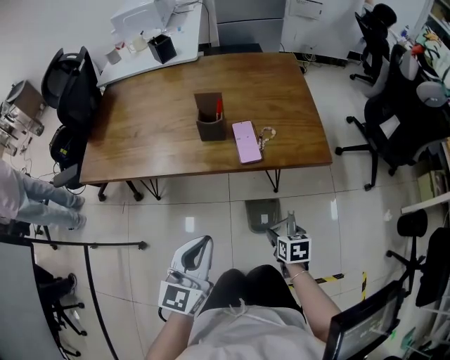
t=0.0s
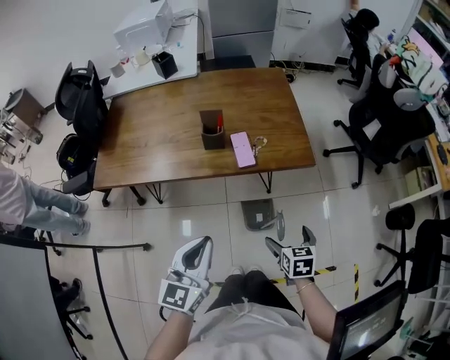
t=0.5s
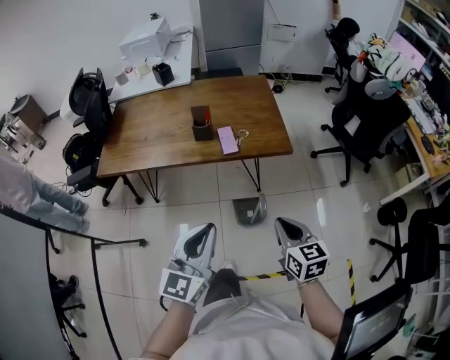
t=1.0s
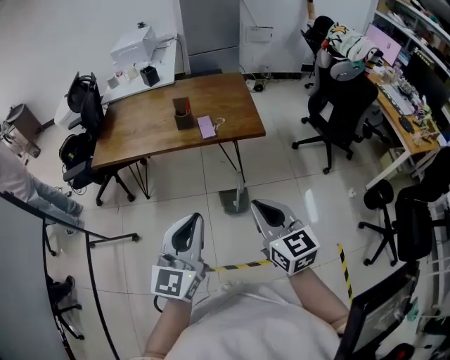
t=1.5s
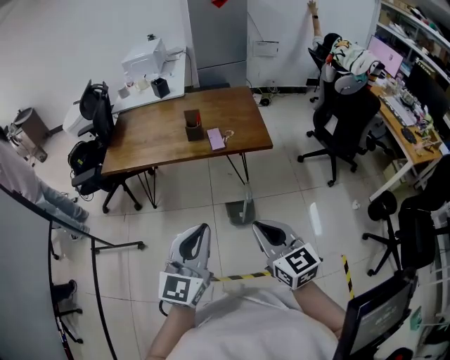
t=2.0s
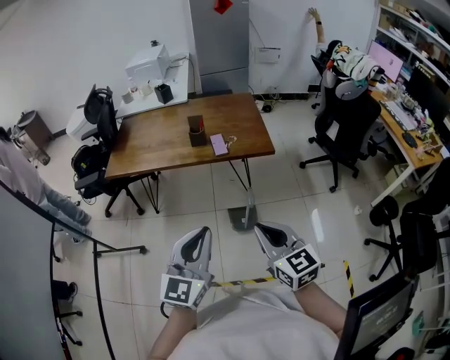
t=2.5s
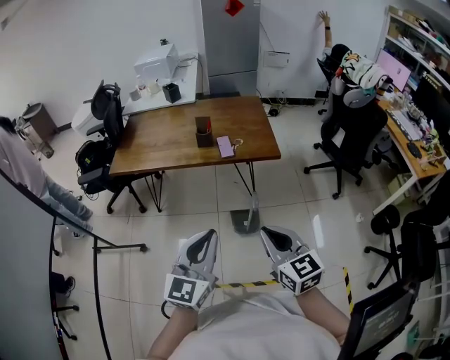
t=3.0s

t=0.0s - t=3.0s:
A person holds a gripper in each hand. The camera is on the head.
t=0.0s - t=1.5s: The right gripper heads upward and backward, covering approximately 50 cm, tips its fingers upward by some 40 degrees, and closes its fingers. Meanwhile the left gripper heads backward and upward, covering about 35 cm.
t=1.5s - t=3.0s: There are only small adjustments of the grippers.

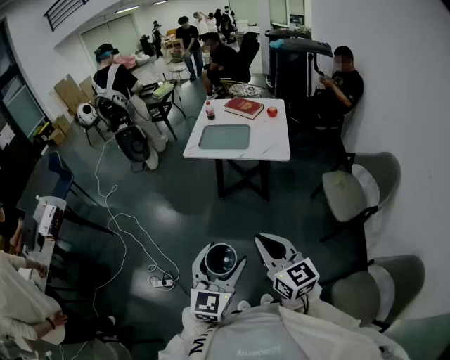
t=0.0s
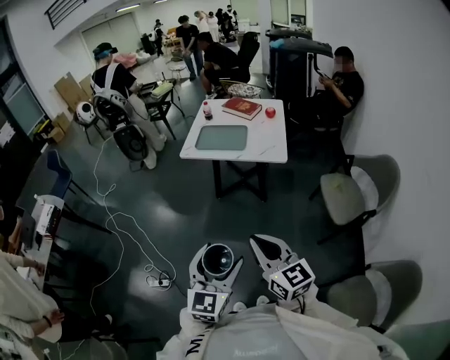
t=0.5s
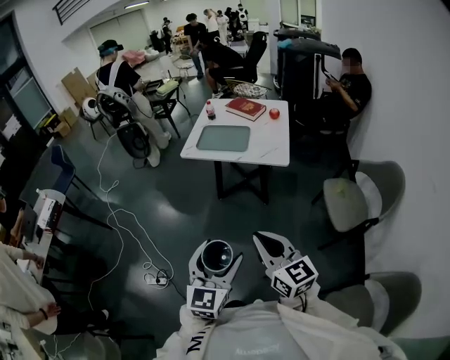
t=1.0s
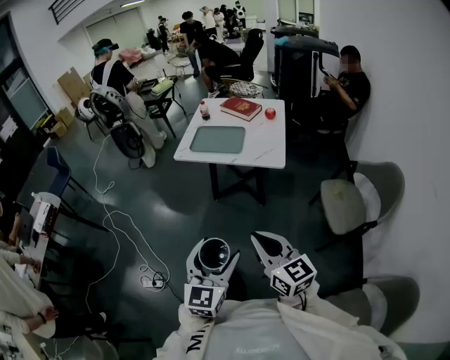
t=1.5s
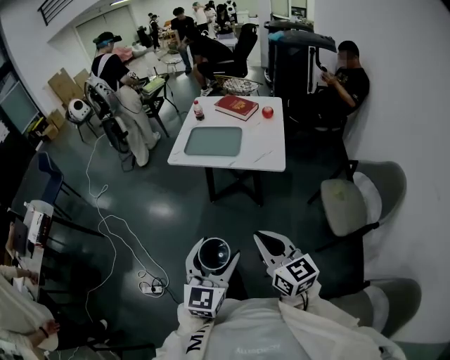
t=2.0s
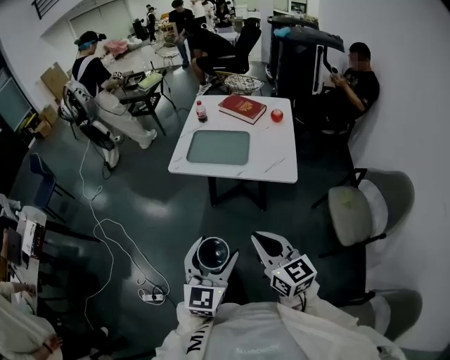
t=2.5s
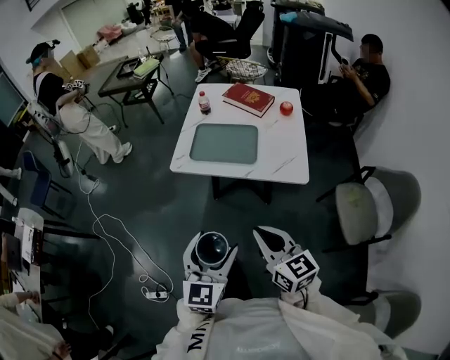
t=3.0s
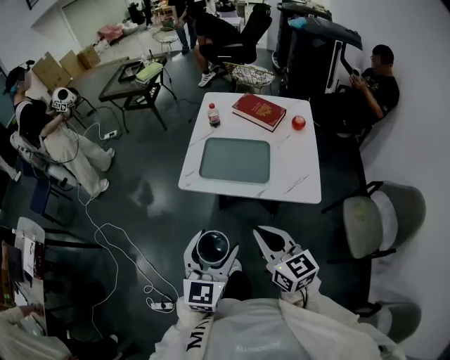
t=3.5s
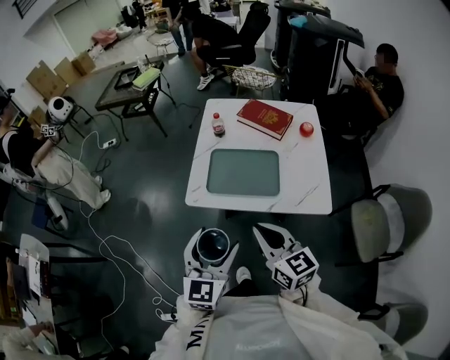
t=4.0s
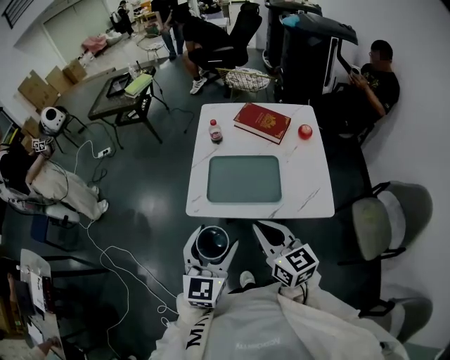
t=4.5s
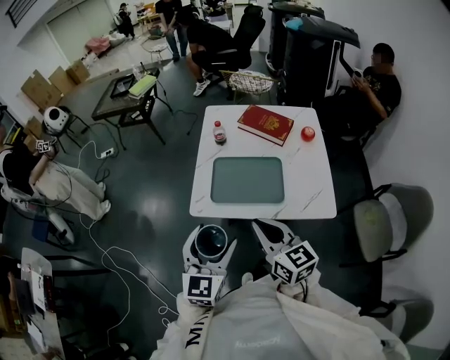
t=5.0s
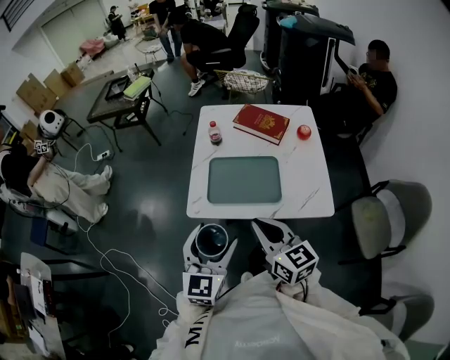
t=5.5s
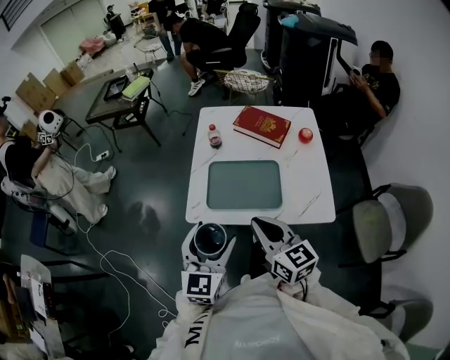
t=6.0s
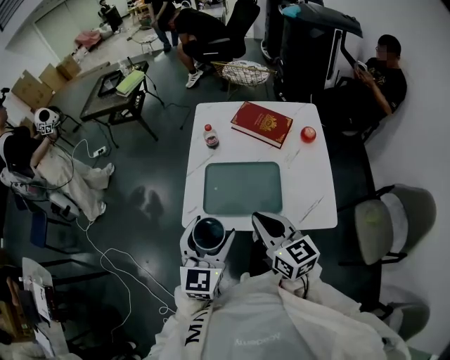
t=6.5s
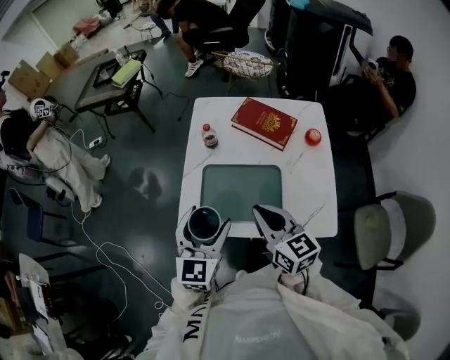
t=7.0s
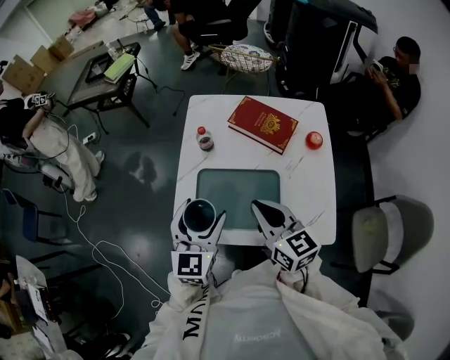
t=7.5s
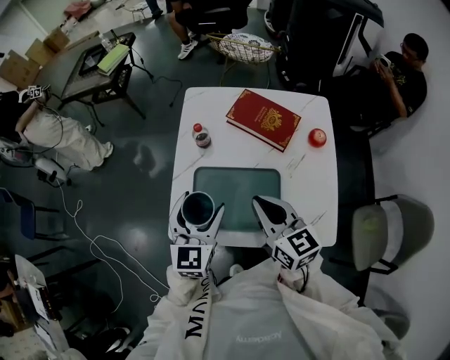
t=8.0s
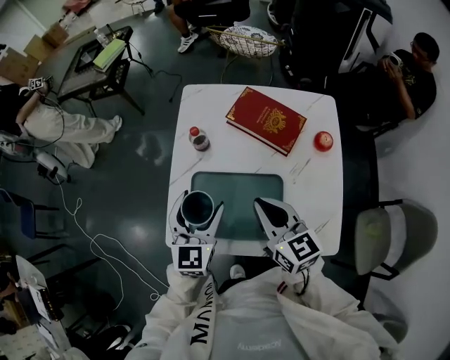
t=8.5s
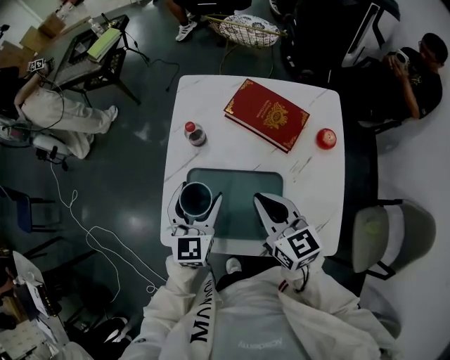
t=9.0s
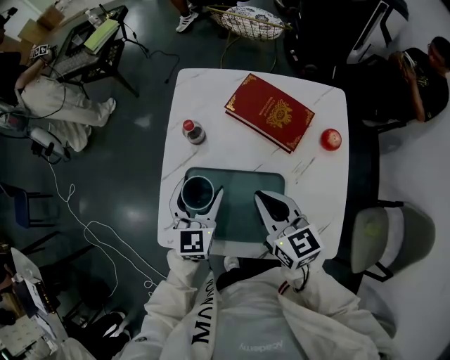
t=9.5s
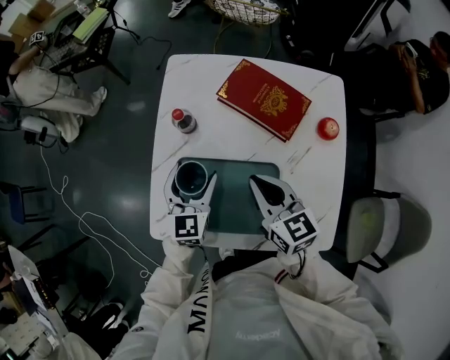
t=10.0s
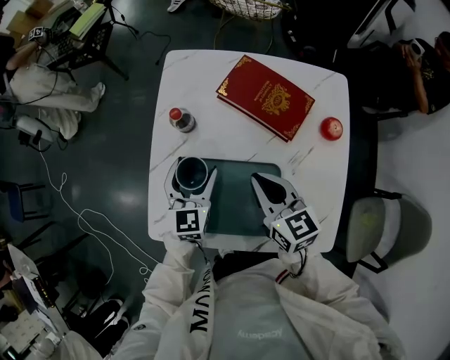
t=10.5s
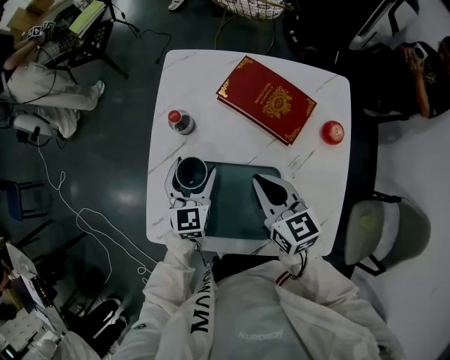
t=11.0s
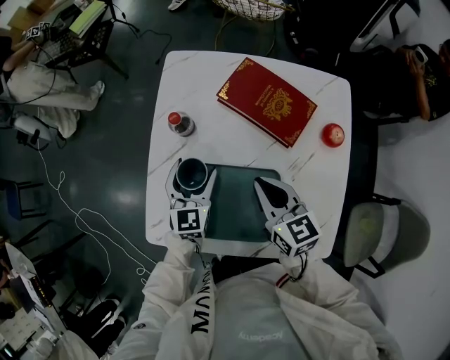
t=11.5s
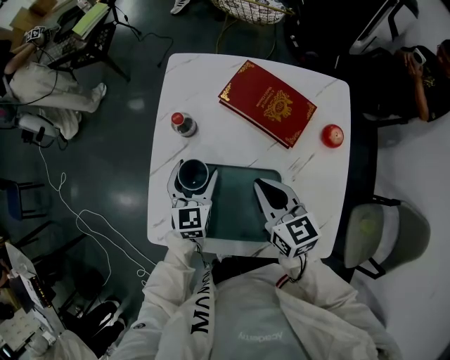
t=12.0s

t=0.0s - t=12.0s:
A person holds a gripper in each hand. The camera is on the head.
t=0.0s - t=2.0s: Both grippers move forward and to the right, some 15 cm.
t=2.0s - t=4.0s: The pair of grippers is taken forward, approximately 40 cm.
t=4.0s - t=6.0s: Both grippers move forward, approximately 10 cm.
t=6.0s - t=8.0s: The two grippers go roughly 20 cm forward.
t=8.0s - t=10.0s: The grippers both shift downward and forward by roughly 15 cm.
t=10.0s - t=12.0s: The left gripper heads downward, covering about 5 cm.

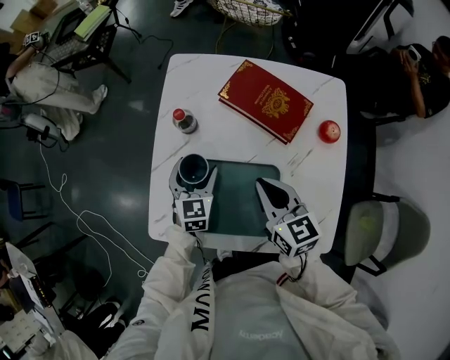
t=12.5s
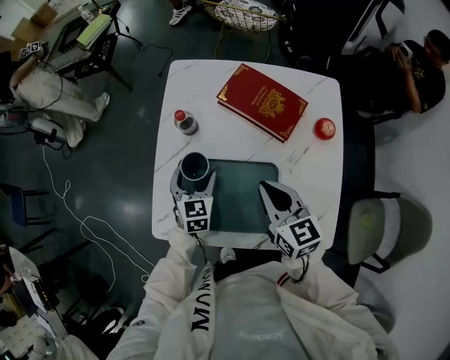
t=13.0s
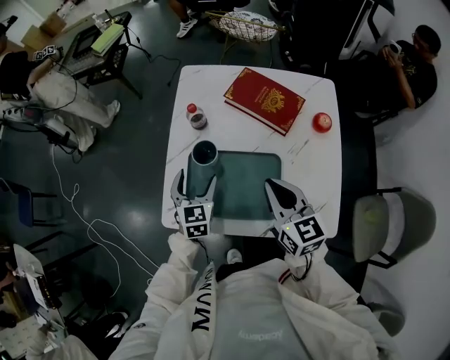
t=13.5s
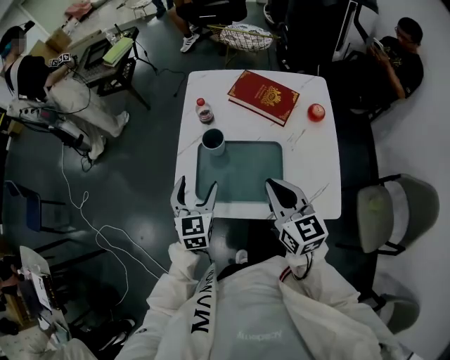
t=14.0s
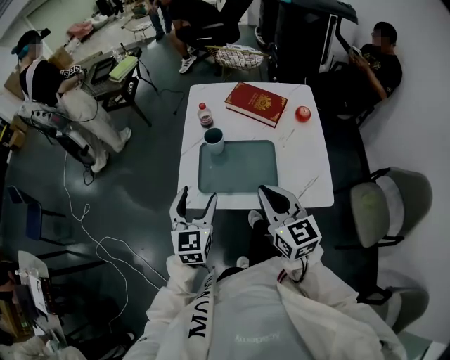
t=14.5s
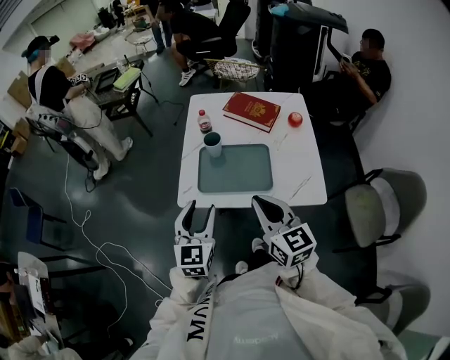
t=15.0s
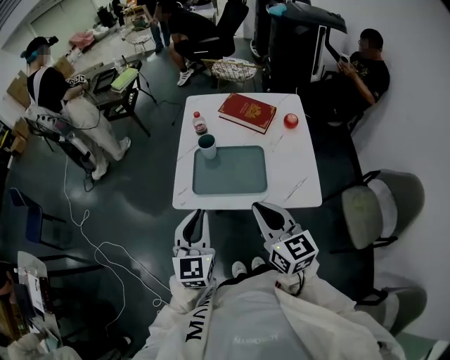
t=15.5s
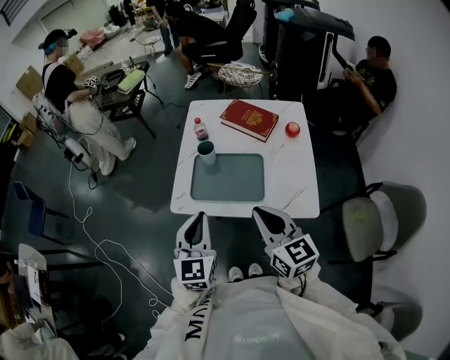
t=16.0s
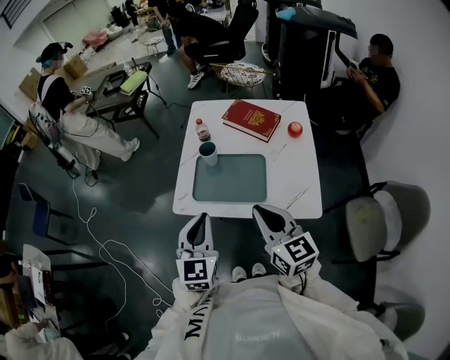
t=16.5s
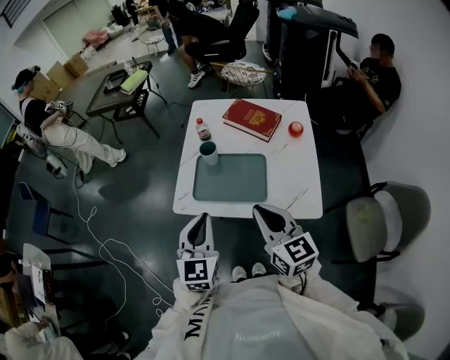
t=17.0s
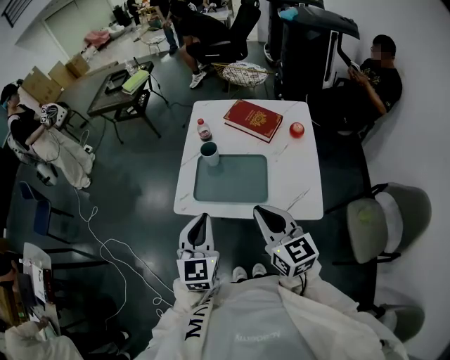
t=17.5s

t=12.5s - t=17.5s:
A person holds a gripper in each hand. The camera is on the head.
t=12.5s - t=15.0s: Both grippers move backward and upward, about 40 cm. The left gripper closes.
t=15.0s - t=17.5s: Both grippers move to the right, about 5 cm. The left gripper closes up.

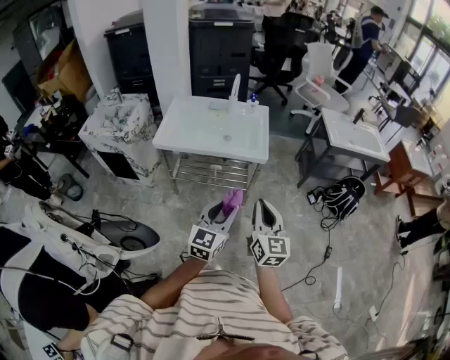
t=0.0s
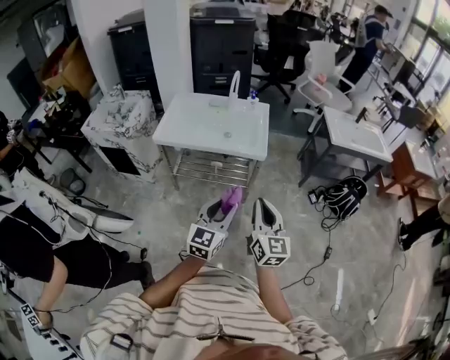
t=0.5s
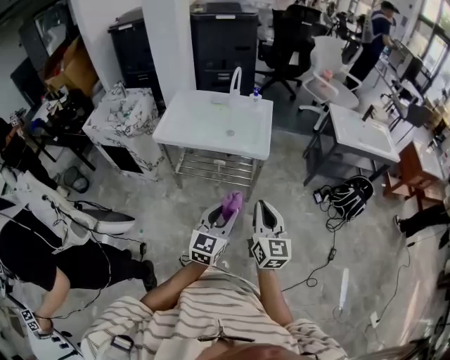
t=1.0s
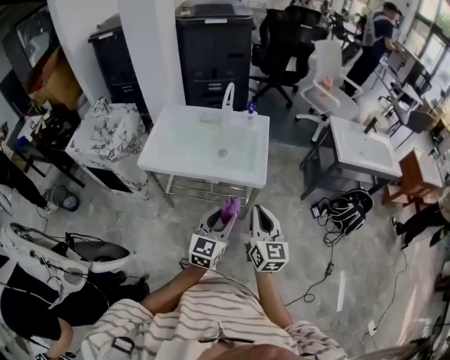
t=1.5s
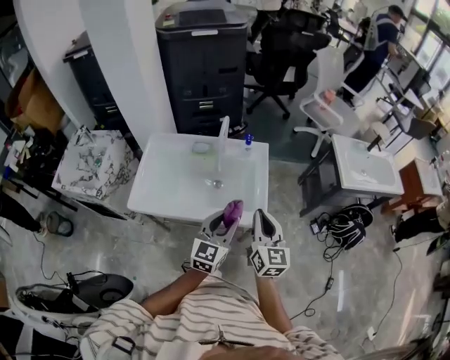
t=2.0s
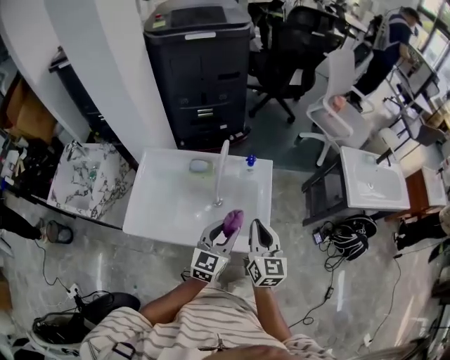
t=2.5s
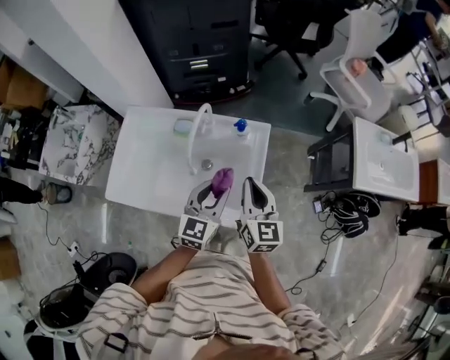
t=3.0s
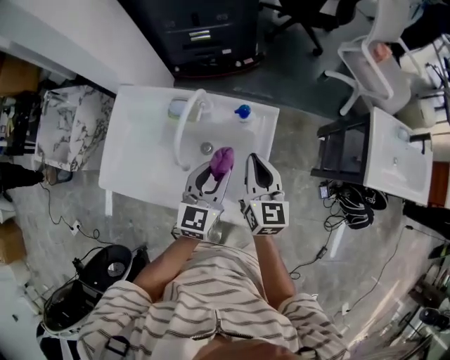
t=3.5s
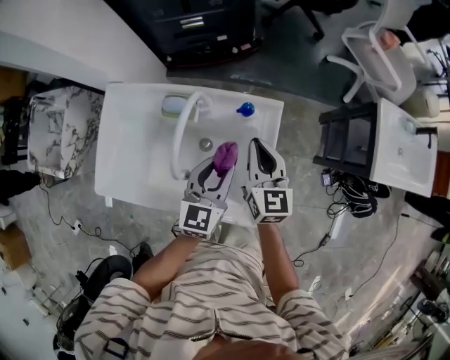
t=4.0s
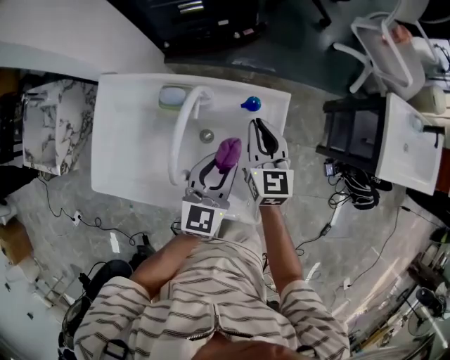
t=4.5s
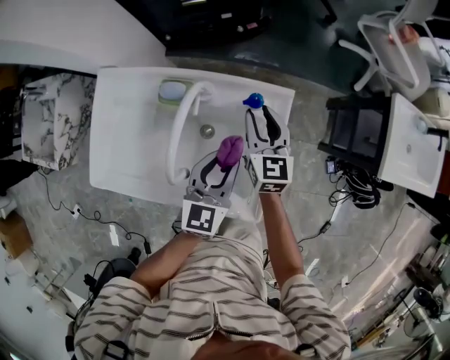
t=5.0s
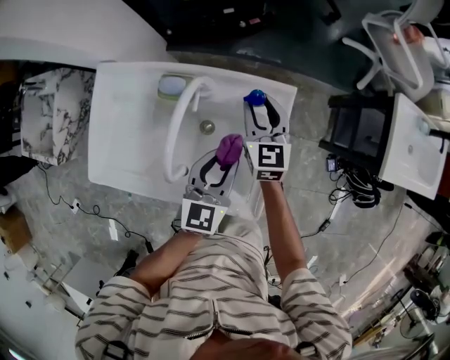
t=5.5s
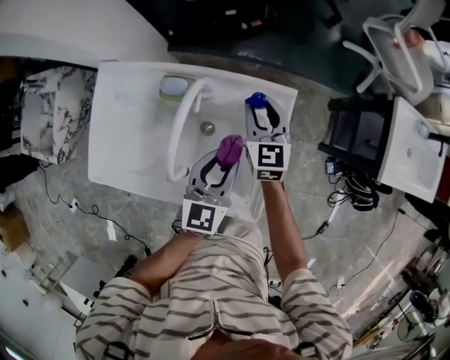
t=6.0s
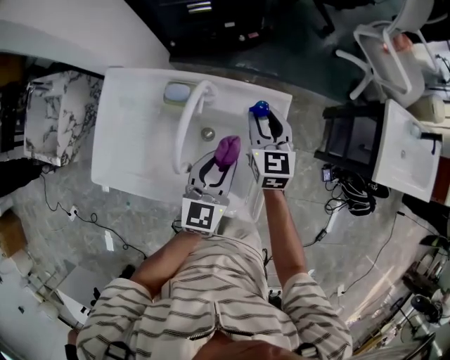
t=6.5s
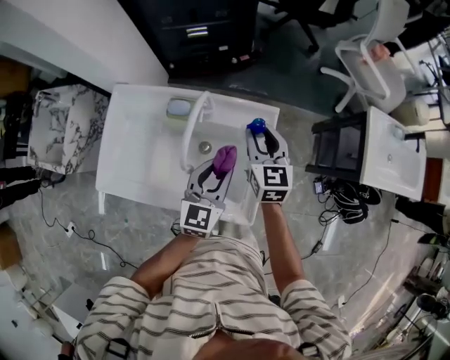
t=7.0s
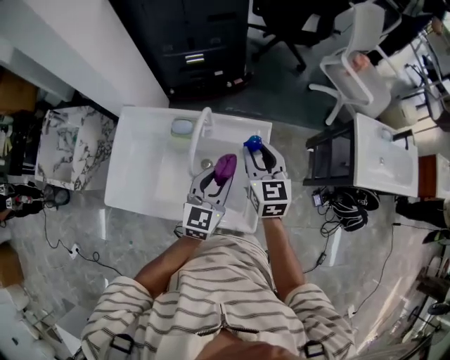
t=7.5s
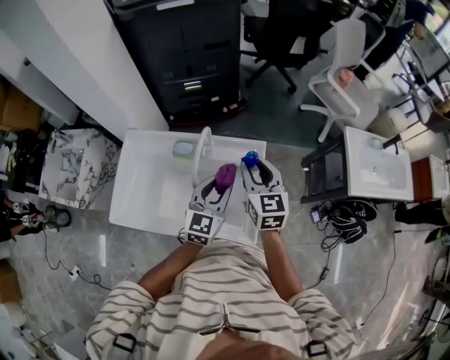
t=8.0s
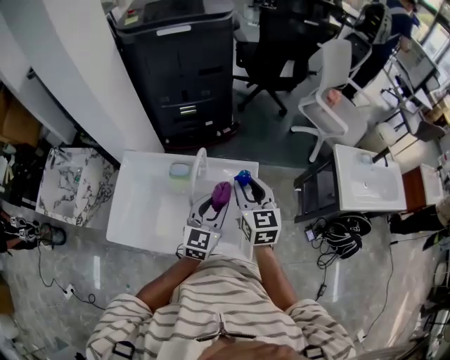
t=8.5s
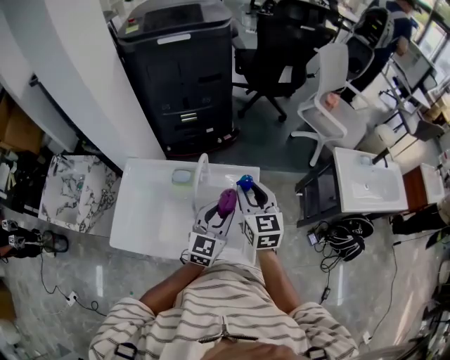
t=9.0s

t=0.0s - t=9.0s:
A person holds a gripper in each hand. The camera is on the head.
t=0.0s - t=2.0s: Both grippers travel together forward, roughly 40 cm.
t=2.0s - t=4.5s: Both grippers travel together forward and downward, some 35 cm.
t=4.5s - t=7.0s: The right gripper travels upward by approximately 5 cm, and opens.
t=7.0s - t=9.0s: The left gripper goes roughly 10 cm upward, while the right gripper is displaced upward and backward by roughly 15 cm.
